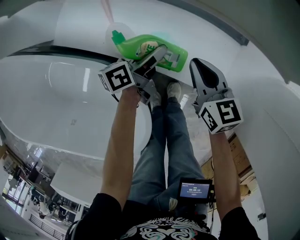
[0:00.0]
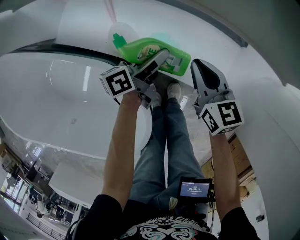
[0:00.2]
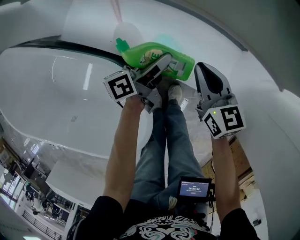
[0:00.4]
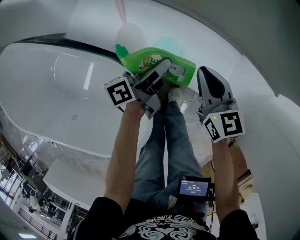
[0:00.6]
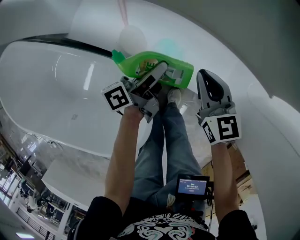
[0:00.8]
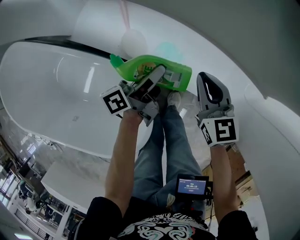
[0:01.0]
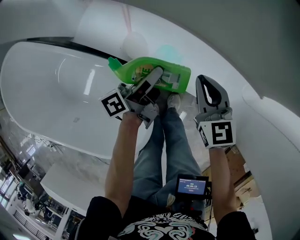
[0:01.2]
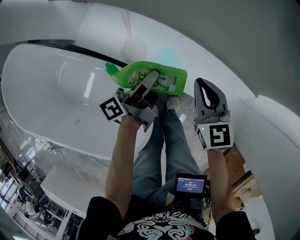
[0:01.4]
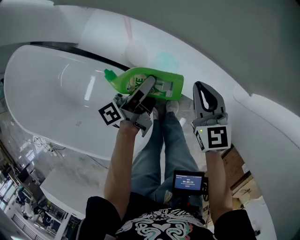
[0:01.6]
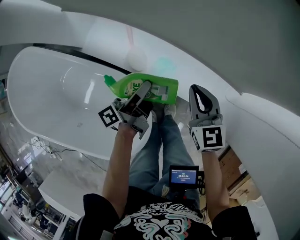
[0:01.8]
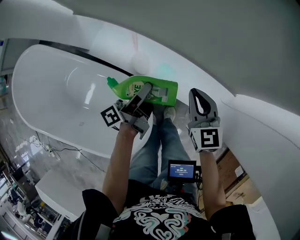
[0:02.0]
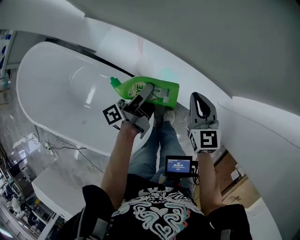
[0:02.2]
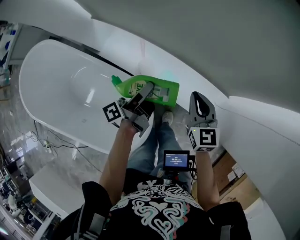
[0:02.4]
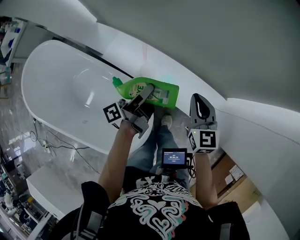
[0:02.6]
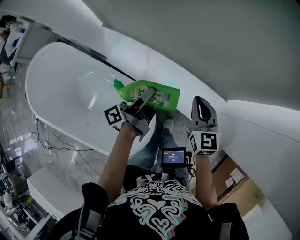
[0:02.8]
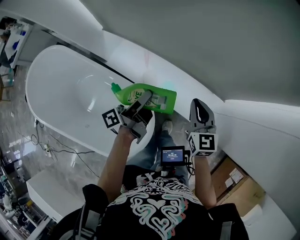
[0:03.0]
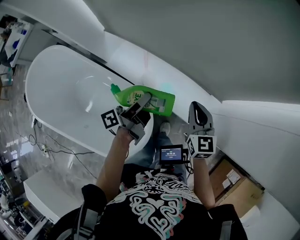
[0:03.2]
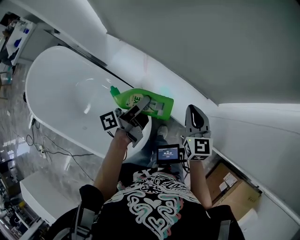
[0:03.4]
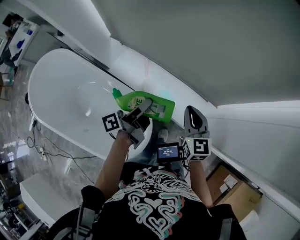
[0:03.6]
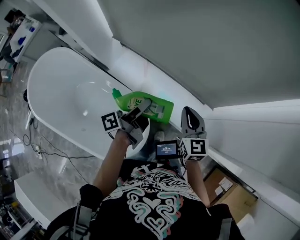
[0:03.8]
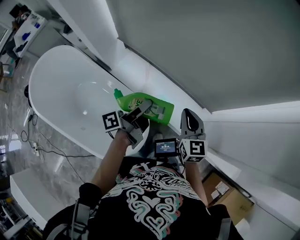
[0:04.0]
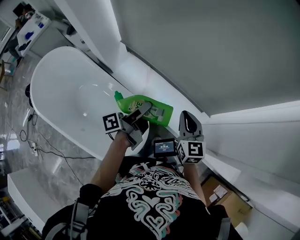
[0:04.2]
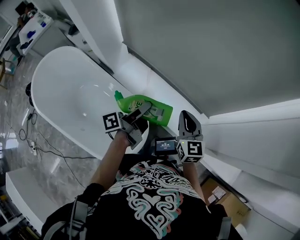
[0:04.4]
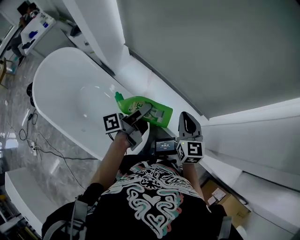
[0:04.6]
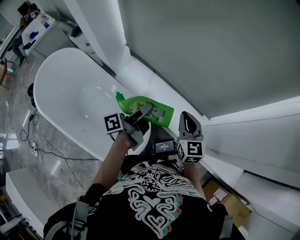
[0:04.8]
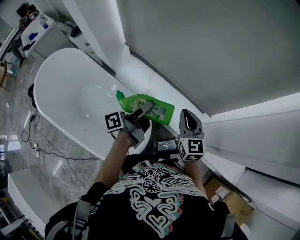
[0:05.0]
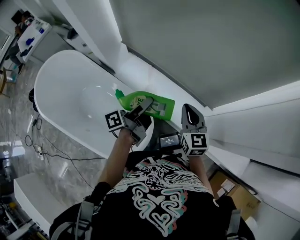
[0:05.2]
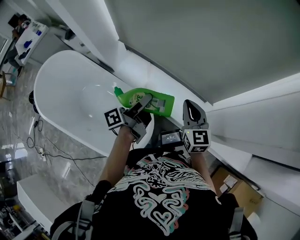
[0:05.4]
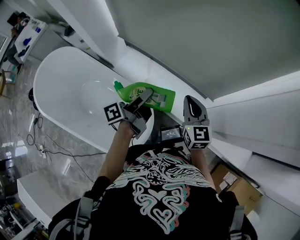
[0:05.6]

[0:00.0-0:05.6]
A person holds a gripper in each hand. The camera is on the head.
0.0 to 1.4 s: Both grippers travel together upward, roughly 20 cm. The left gripper swivels roughly 20 degrees.
1.4 to 4.2 s: There are only small adjustments of the grippers.
4.2 to 5.6 s: Both grippers stay put.

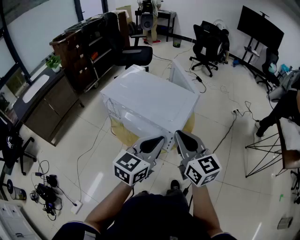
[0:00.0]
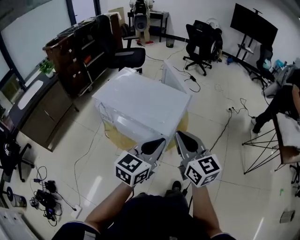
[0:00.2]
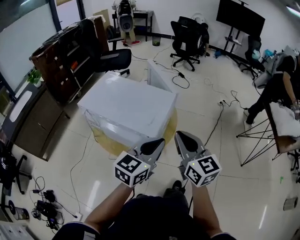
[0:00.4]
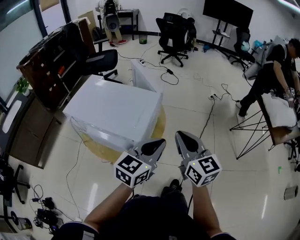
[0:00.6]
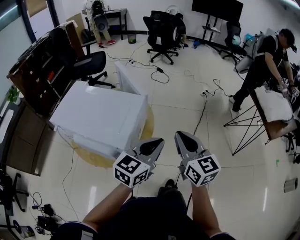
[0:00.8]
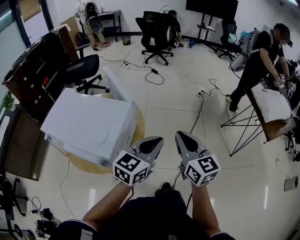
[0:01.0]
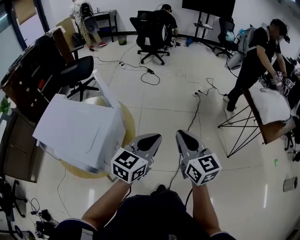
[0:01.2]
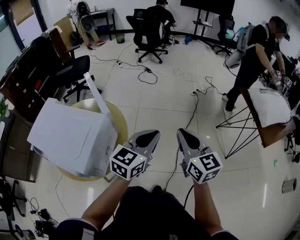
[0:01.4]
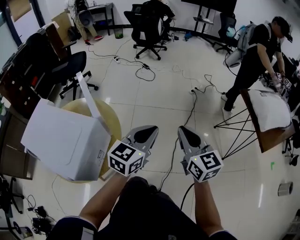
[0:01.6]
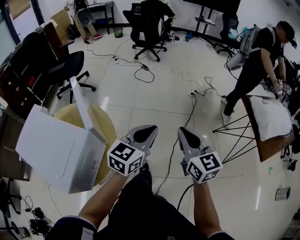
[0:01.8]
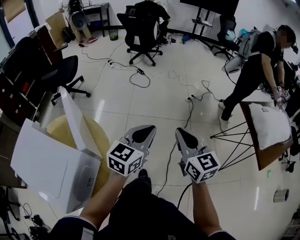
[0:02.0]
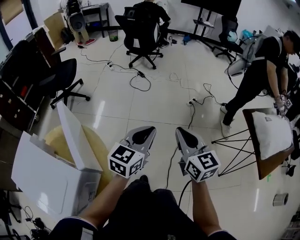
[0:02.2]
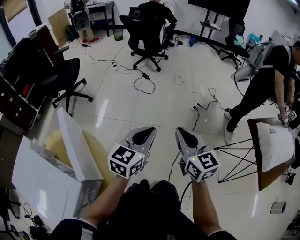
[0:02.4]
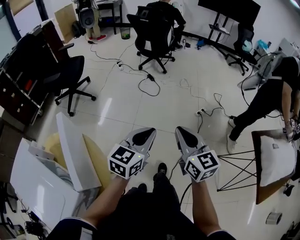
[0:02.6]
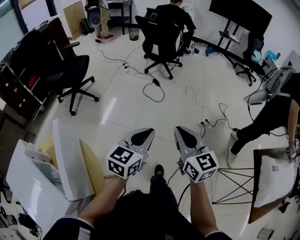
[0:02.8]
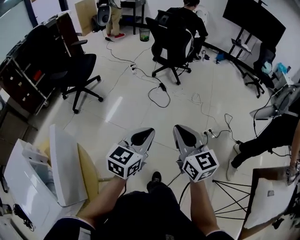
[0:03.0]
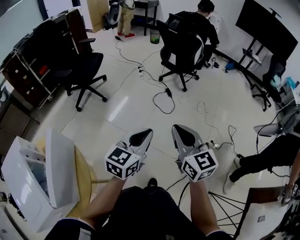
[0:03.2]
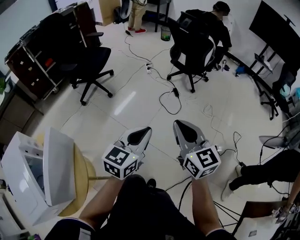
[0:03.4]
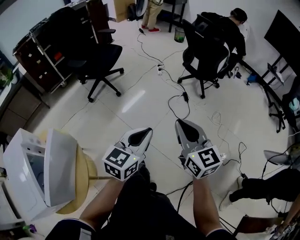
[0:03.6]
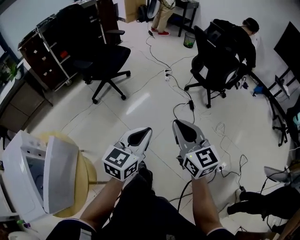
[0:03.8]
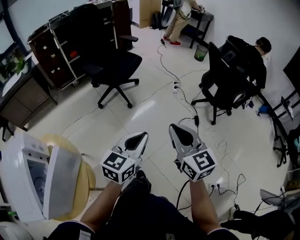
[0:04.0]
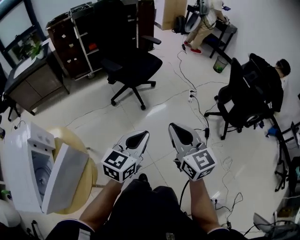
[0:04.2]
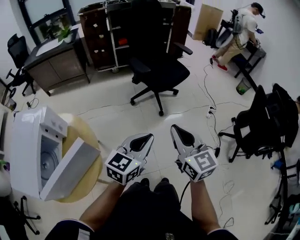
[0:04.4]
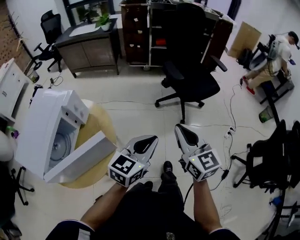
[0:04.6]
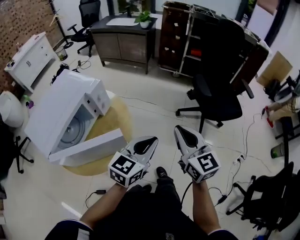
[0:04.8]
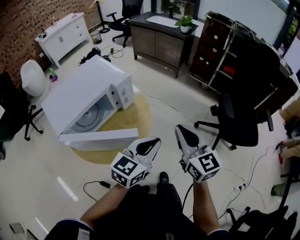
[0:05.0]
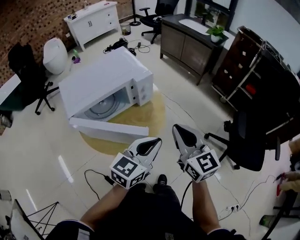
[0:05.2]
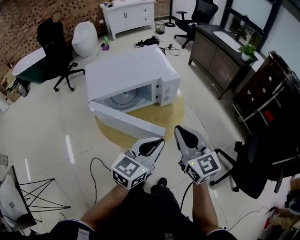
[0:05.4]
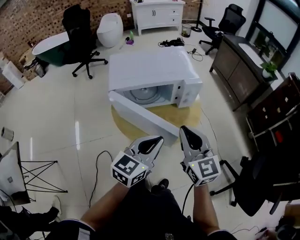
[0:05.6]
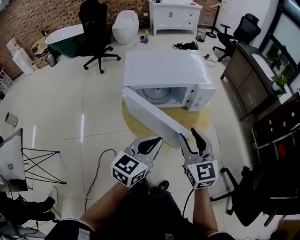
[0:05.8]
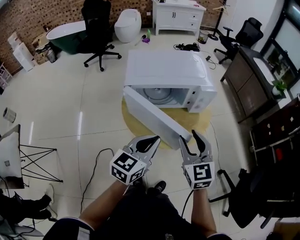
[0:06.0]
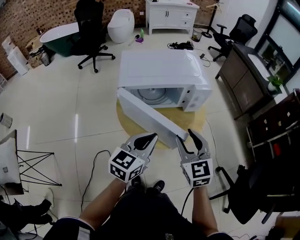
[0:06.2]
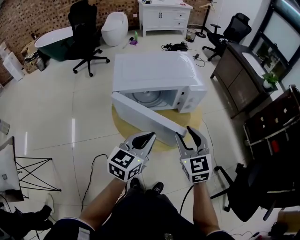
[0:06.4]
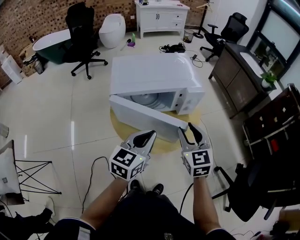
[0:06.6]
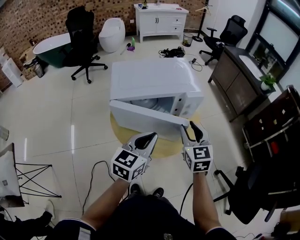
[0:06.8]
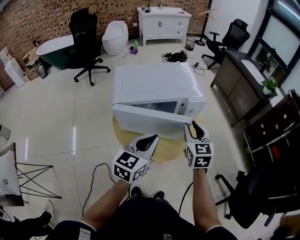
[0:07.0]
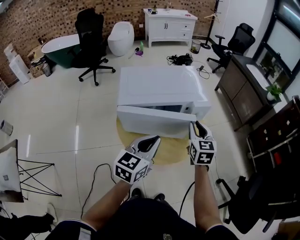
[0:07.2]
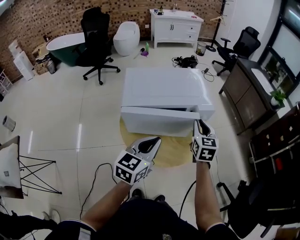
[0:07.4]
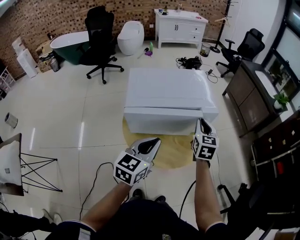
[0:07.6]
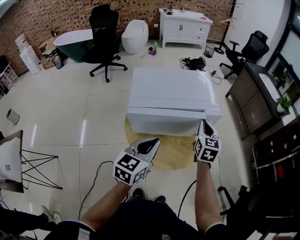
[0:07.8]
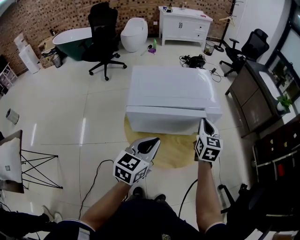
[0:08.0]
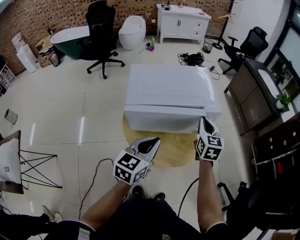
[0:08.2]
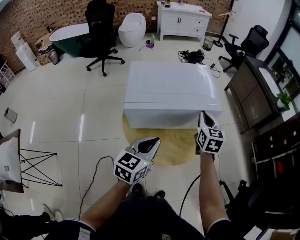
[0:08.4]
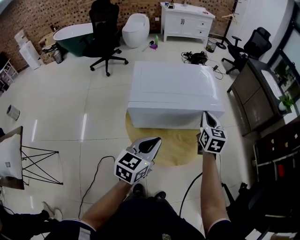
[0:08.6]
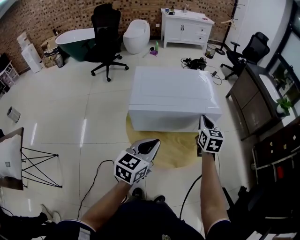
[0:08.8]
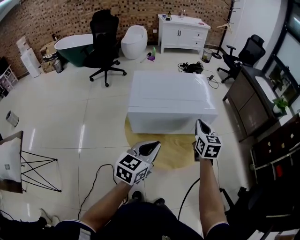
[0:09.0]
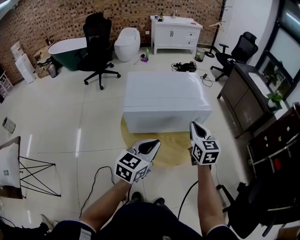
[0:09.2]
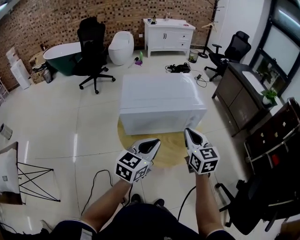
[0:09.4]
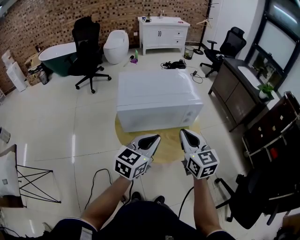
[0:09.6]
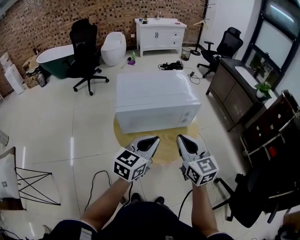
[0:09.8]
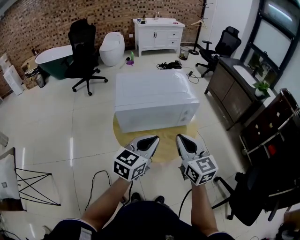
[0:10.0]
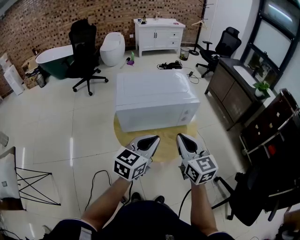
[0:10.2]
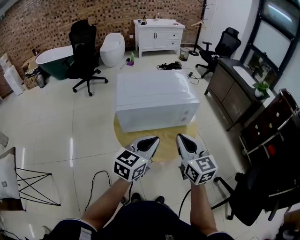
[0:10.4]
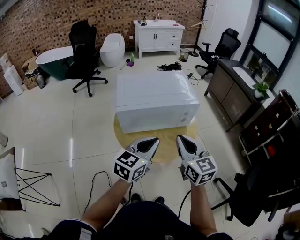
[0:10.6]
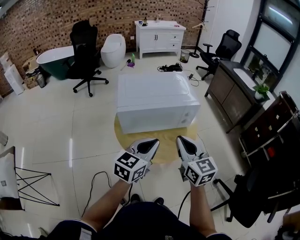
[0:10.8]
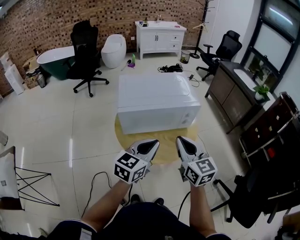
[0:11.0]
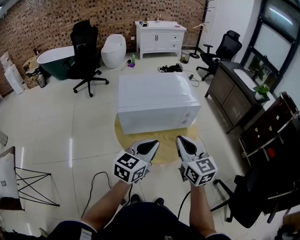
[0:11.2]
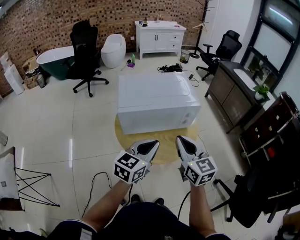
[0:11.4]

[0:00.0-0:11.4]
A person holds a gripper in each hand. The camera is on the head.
0.0 to 1.4 s: The two grippers go some 35 cm to the right and forward. The right gripper turns by some 20 degrees.
1.4 to 2.8 s: The two grippers travel together, forward, about 40 cm.
2.8 to 4.2 s: The right gripper ends up roughly 40 cm from where it was, and rotates roughly 50 degrees. The left gripper moves approximately 35 cm, and turns by roughly 40 degrees.
4.2 to 5.6 s: The right gripper shifts by about 40 cm, and turns by about 100 degrees, while the left gripper shifts by approximately 35 cm, and swivels approximately 100 degrees.
5.6 to 7.2 s: The left gripper shifts some 10 cm forward and to the left. Meanwhile the right gripper heads forward and downward, covering roughly 15 cm, and opens, then closes once more.
7.2 to 8.6 s: The right gripper goes some 5 cm forward.
8.6 to 10.0 s: The right gripper goes roughly 20 cm backward, while the left gripper shifts by approximately 5 cm.
10.0 to 11.4 s: The grippers move only a little.

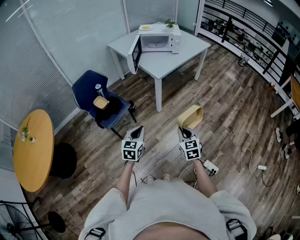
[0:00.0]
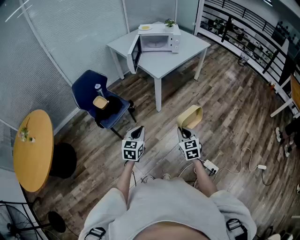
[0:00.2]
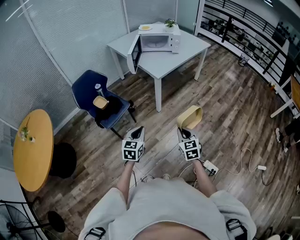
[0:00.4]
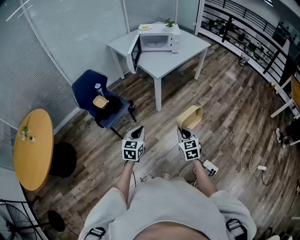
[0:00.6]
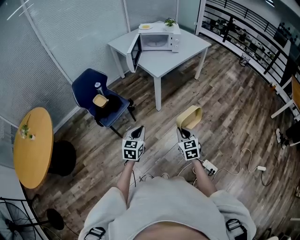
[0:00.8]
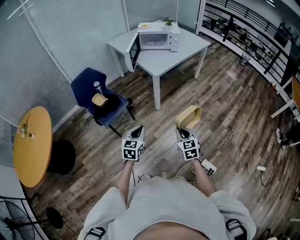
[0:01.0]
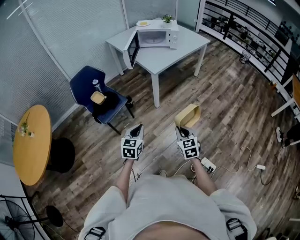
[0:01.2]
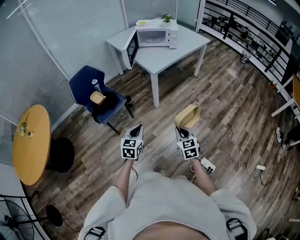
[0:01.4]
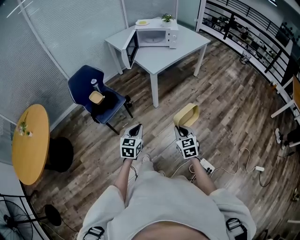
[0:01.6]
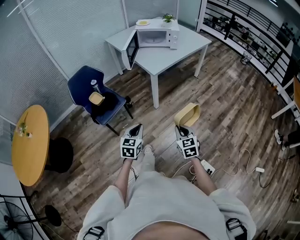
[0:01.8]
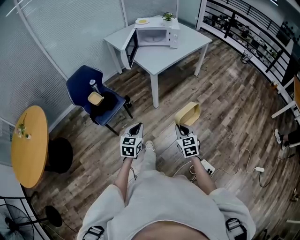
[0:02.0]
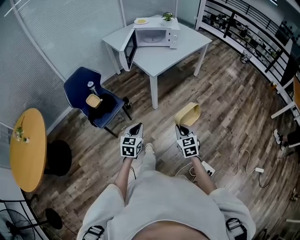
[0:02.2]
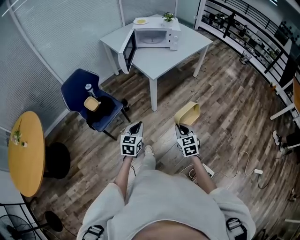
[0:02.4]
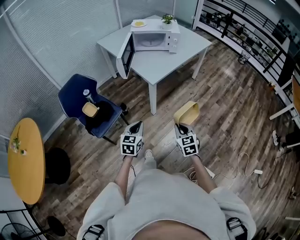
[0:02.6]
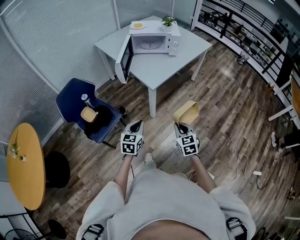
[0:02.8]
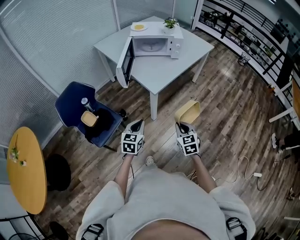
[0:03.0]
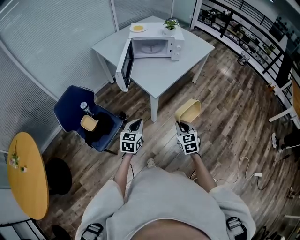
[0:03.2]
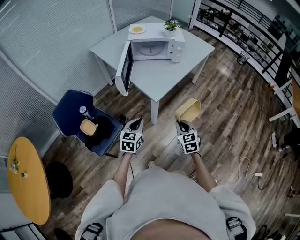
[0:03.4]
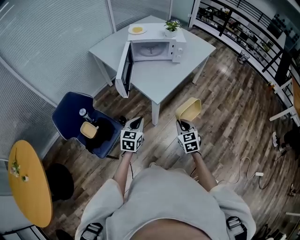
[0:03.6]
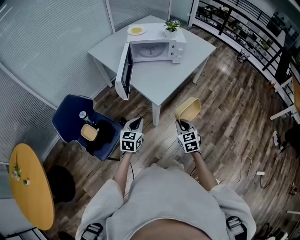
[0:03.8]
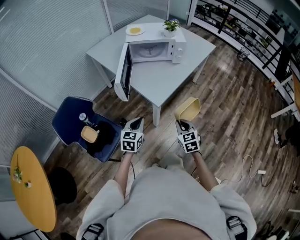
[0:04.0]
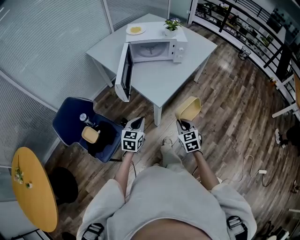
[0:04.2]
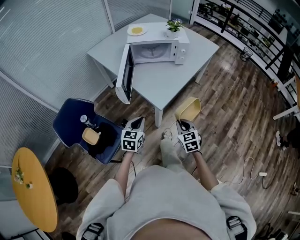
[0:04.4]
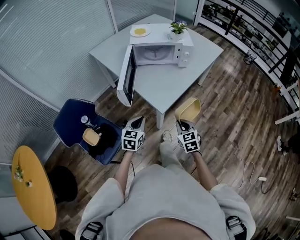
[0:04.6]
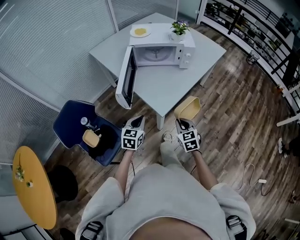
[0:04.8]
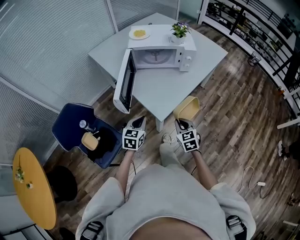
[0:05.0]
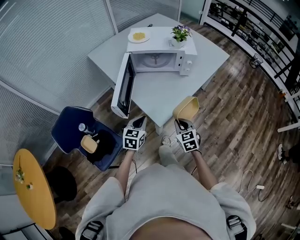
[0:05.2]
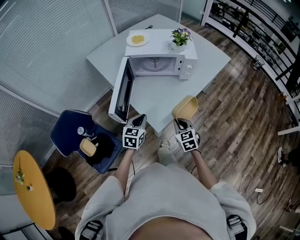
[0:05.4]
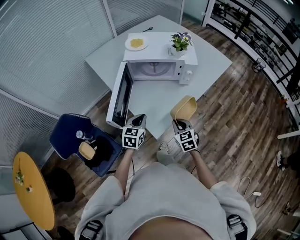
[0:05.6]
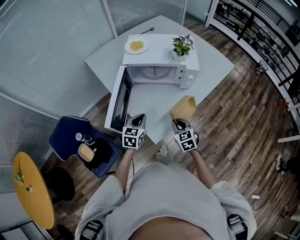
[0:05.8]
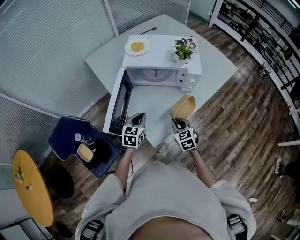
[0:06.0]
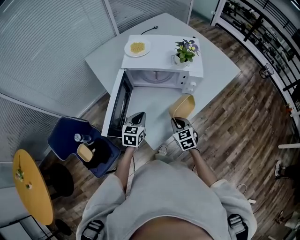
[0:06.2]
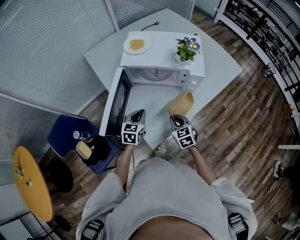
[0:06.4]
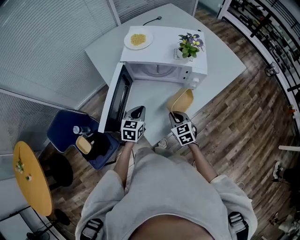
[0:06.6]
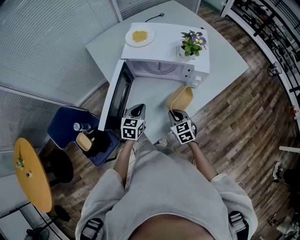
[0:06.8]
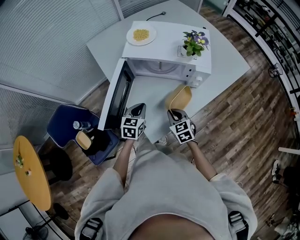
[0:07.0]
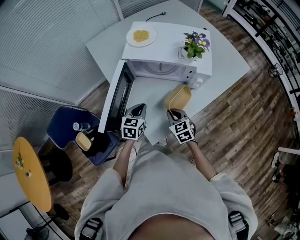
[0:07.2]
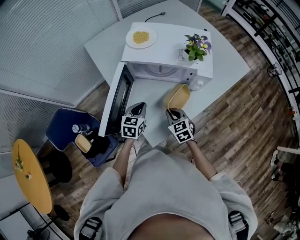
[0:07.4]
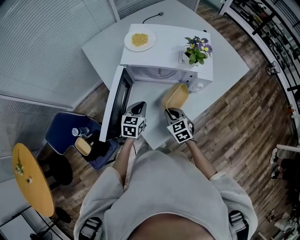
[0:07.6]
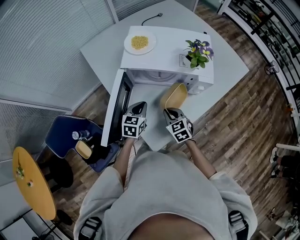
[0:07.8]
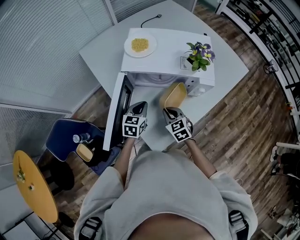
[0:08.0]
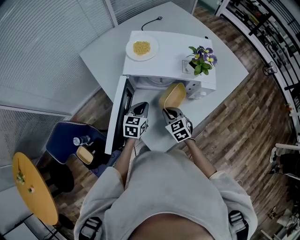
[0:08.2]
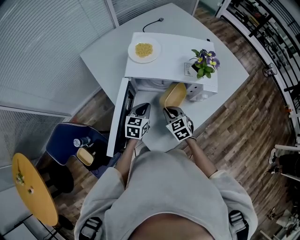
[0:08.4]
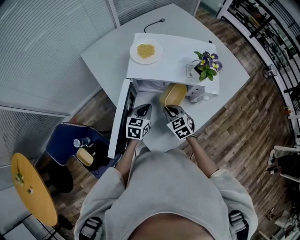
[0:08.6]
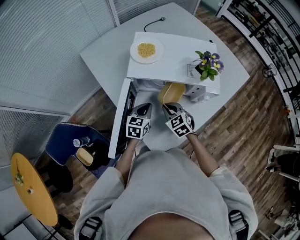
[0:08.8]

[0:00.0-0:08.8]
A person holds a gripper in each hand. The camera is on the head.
0.0 to 1.4 s: The left gripper shifts by approximately 5 cm.
1.4 to 3.0 s: The grippers both shift forward by roughly 30 cm.
3.0 to 4.4 s: Both grippers travel together forward, approximately 15 cm.
4.4 to 5.8 s: The two grippers go some 25 cm forward.
5.8 to 7.4 s: Both grippers move forward, about 10 cm.
7.4 to 8.8 s: The right gripper heads forward and to the left, covering approximately 10 cm, while the left gripper moves forward, approximately 10 cm.
